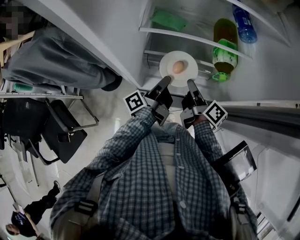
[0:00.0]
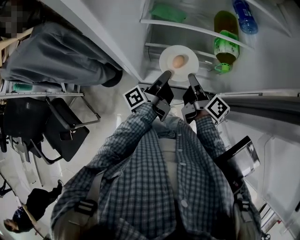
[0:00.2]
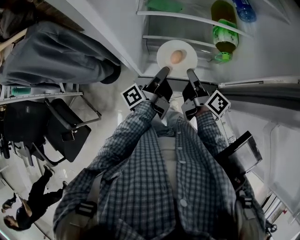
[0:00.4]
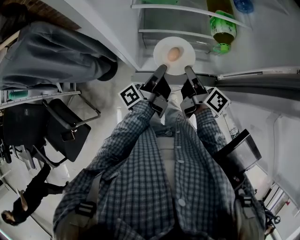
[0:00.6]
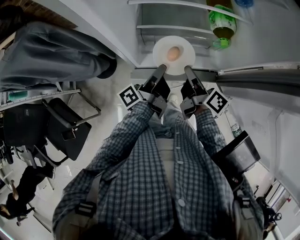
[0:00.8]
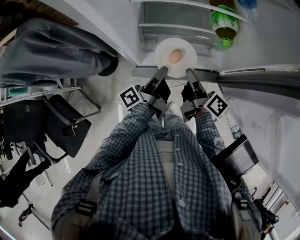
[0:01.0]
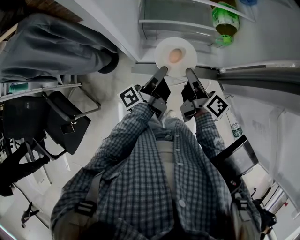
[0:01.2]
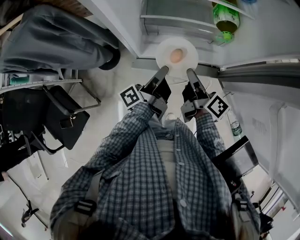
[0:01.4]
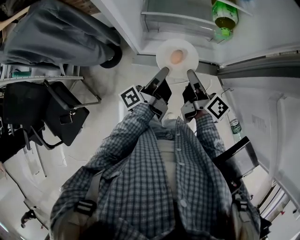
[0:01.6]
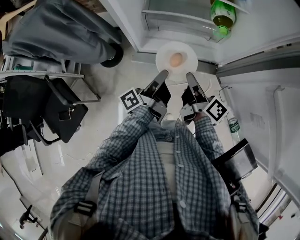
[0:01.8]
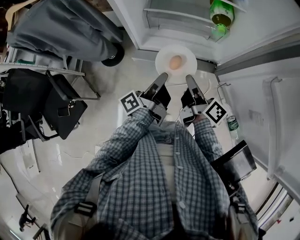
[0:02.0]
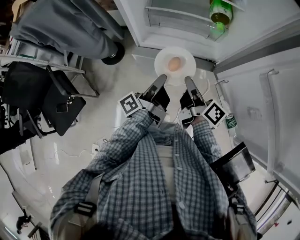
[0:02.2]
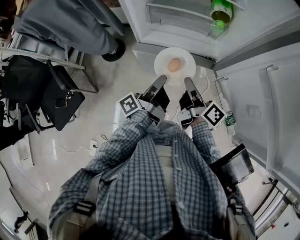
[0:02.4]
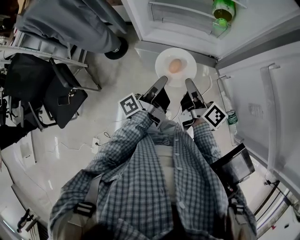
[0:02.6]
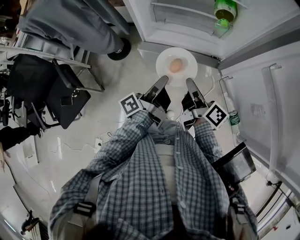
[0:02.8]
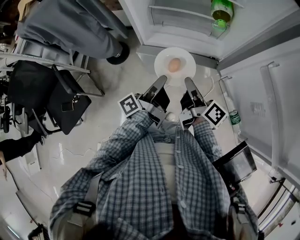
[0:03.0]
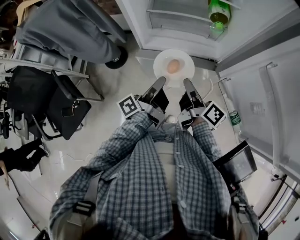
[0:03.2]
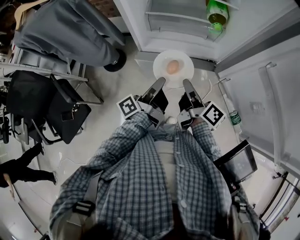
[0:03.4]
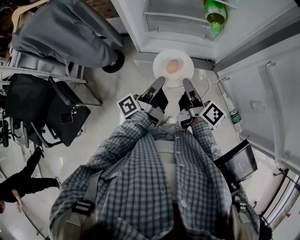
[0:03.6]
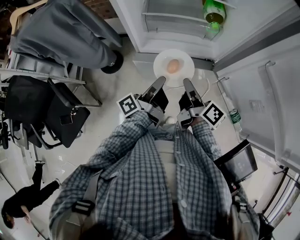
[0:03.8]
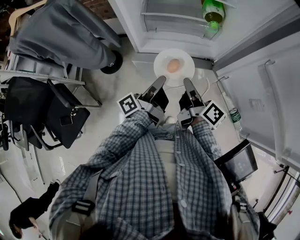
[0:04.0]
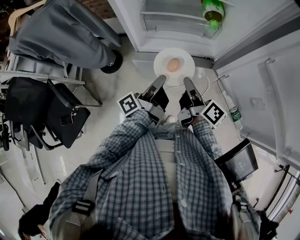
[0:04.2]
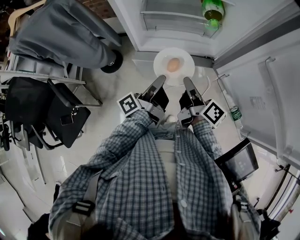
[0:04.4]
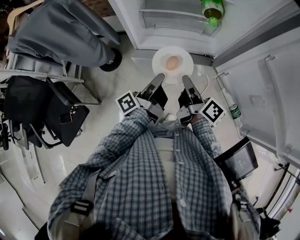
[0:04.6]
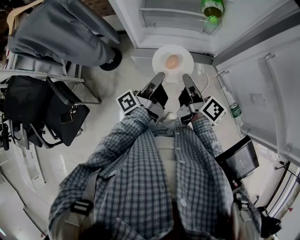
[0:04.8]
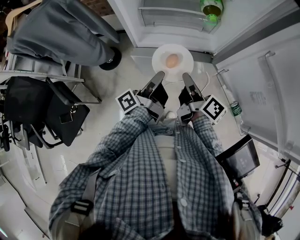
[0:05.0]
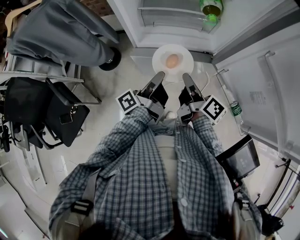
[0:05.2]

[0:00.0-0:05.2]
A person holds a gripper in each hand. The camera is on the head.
0:00.0 to 0:01.8: Both grippers move backward, approximately 15 cm.
0:01.8 to 0:03.4: Both grippers move backward, roughly 5 cm.
0:03.4 to 0:05.2: Both grippers stay put.

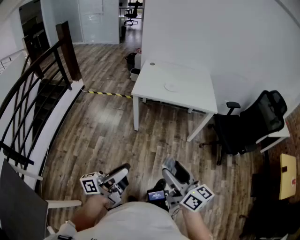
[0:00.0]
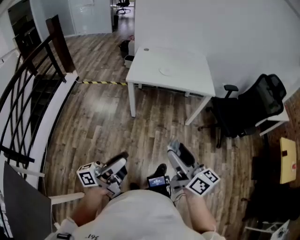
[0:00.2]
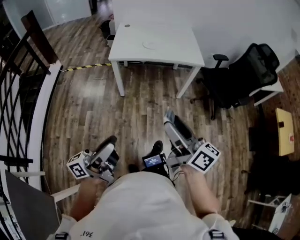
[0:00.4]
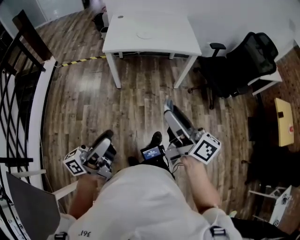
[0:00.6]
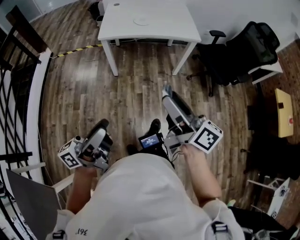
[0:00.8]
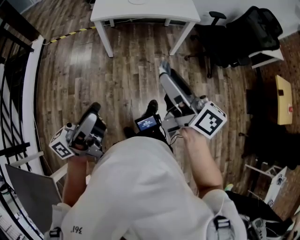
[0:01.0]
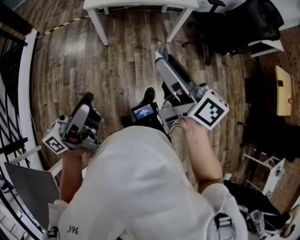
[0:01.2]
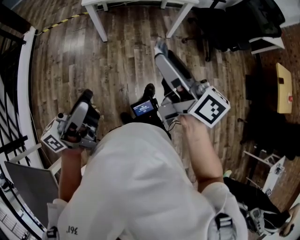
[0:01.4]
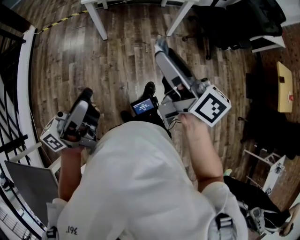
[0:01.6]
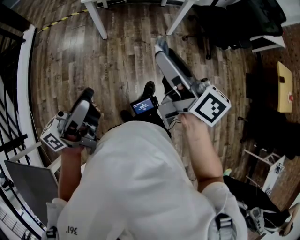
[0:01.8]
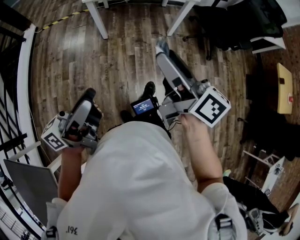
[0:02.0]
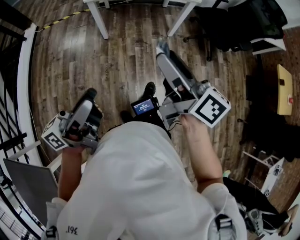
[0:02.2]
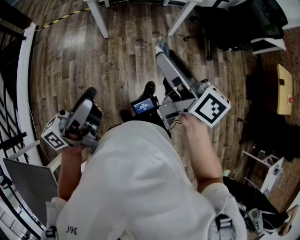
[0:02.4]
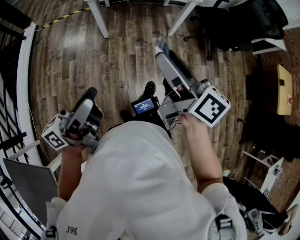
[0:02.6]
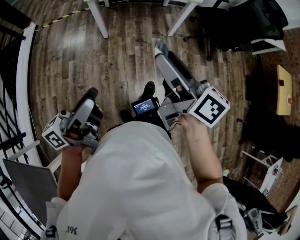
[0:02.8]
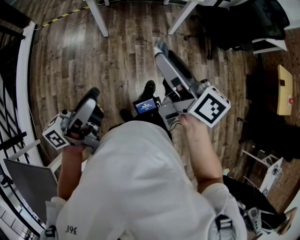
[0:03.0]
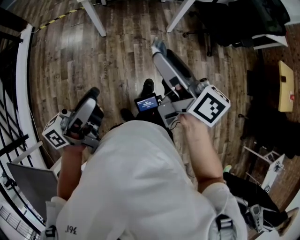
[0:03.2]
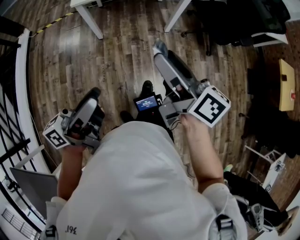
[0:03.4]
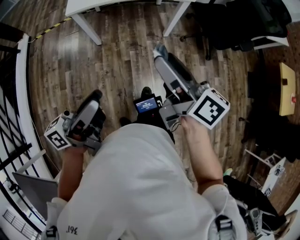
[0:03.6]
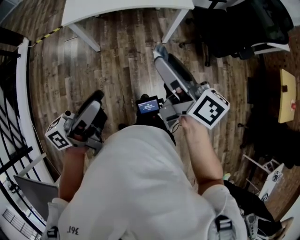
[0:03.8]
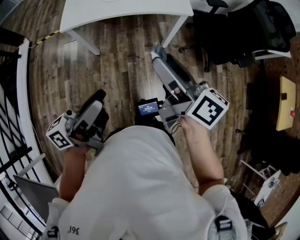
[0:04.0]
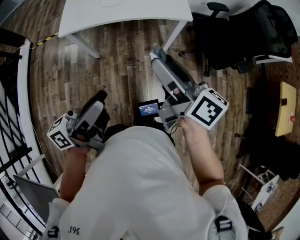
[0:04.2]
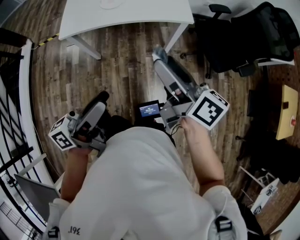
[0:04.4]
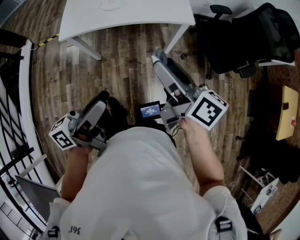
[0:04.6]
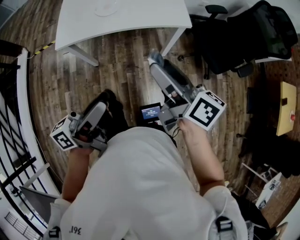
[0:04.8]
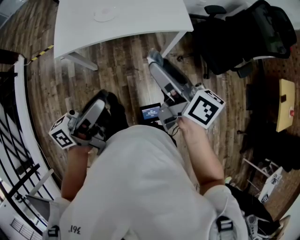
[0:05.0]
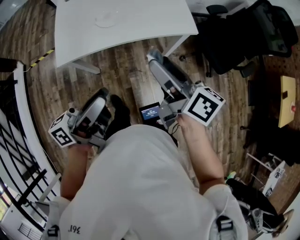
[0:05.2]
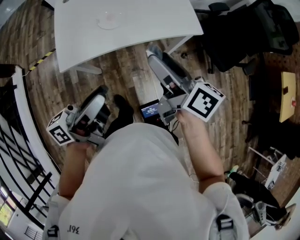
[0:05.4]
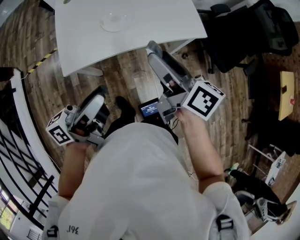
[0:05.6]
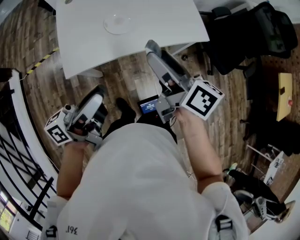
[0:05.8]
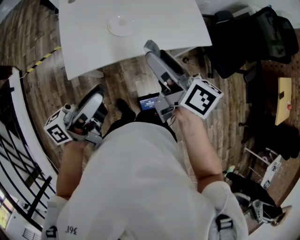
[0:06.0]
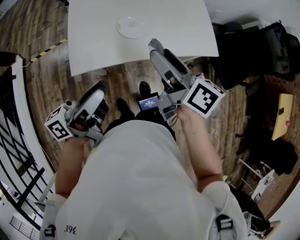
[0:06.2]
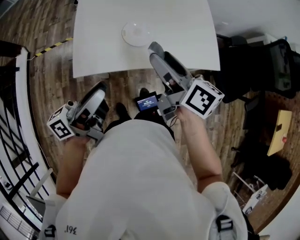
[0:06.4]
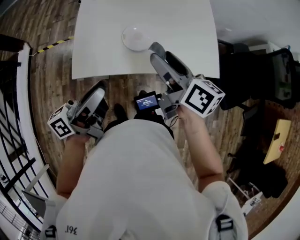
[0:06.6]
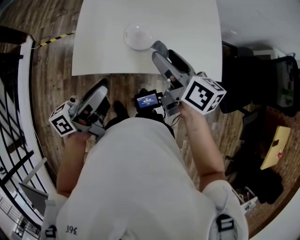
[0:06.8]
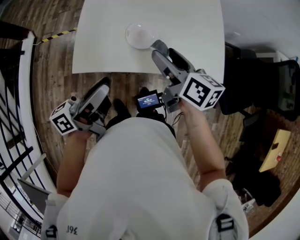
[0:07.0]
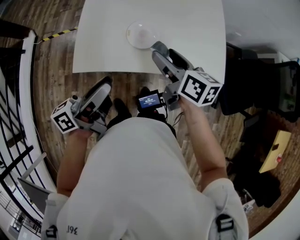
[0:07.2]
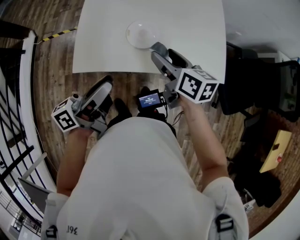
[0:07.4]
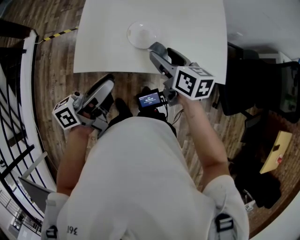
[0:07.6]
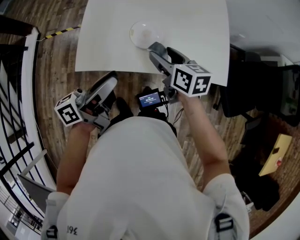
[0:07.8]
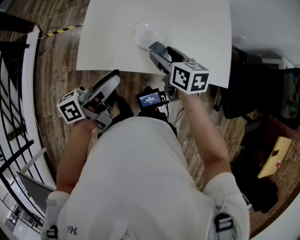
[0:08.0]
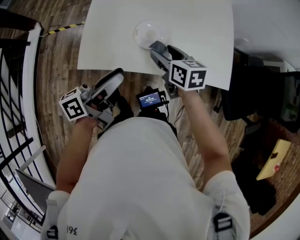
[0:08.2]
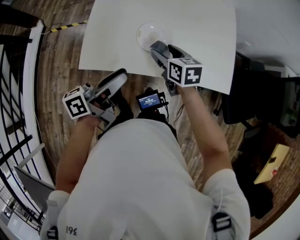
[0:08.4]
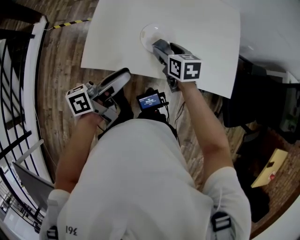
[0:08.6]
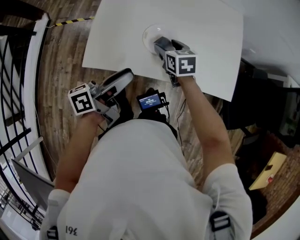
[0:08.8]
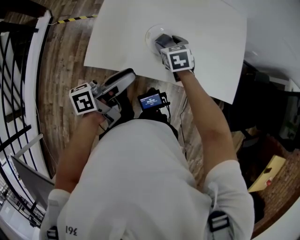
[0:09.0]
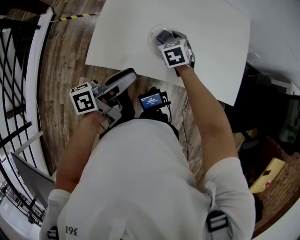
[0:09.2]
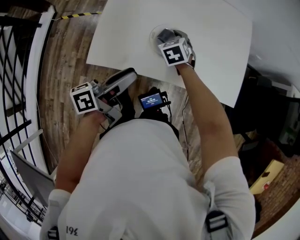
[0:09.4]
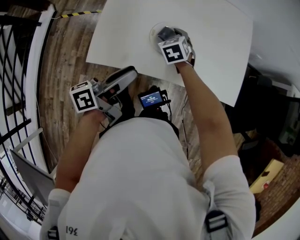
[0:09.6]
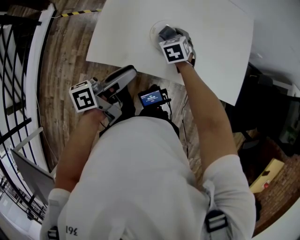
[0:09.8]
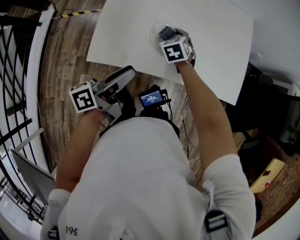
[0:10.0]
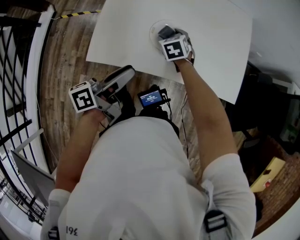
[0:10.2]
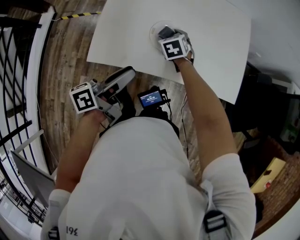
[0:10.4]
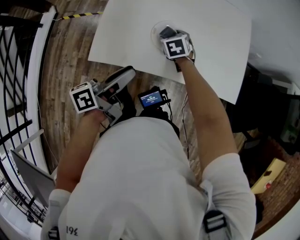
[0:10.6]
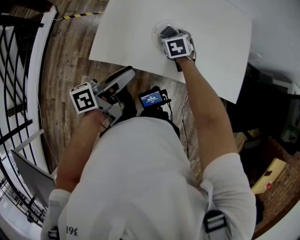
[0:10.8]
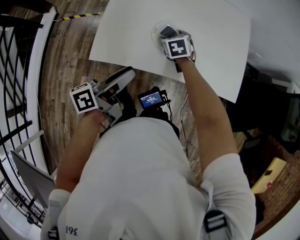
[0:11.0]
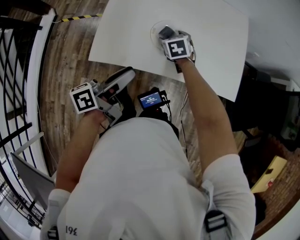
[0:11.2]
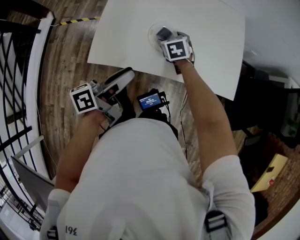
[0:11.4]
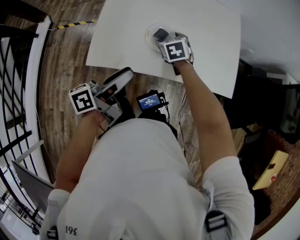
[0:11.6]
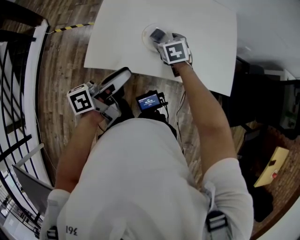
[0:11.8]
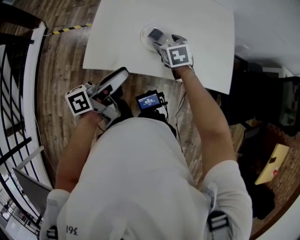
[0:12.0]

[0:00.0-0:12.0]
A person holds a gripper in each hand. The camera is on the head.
0:00.0 to 0:01.6: The right gripper is displaced forward by roughly 10 cm.
0:01.6 to 0:03.0: There are only small adjustments of the grippers.
0:03.0 to 0:04.4: Both grippers travel together forward and to the right, approximately 35 cm.
0:04.4 to 0:06.0: The grippers both shift to the left and forward by about 35 cm.
0:06.0 to 0:07.6: The left gripper moves forward and downward, some 10 cm; the right gripper goes some 20 cm forward and downward, and rotates roughly 30 degrees.
0:07.6 to 0:09.0: The left gripper goes approximately 5 cm downward. The right gripper heads downward, forward and to the left, covering roughly 20 cm, and swivels some 40 degrees.
0:09.0 to 0:10.4: The grippers make only small movements.
0:10.4 to 0:12.0: The right gripper travels upward by approximately 5 cm.

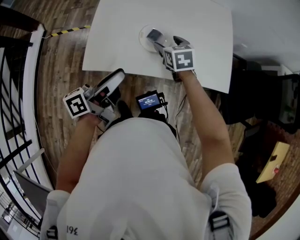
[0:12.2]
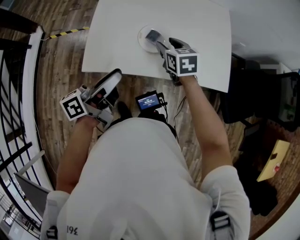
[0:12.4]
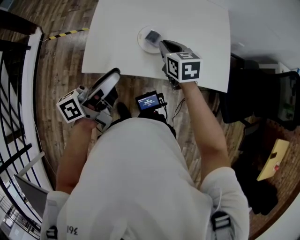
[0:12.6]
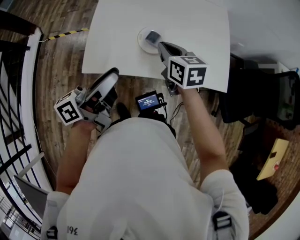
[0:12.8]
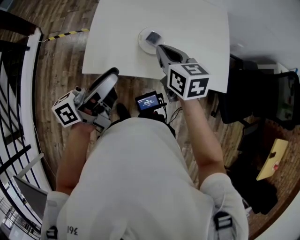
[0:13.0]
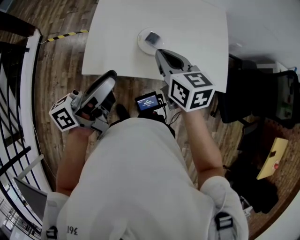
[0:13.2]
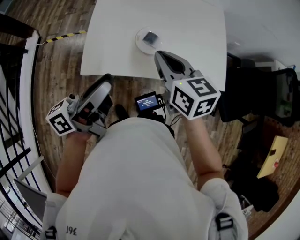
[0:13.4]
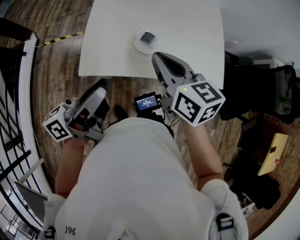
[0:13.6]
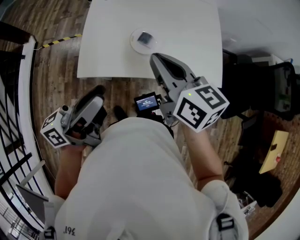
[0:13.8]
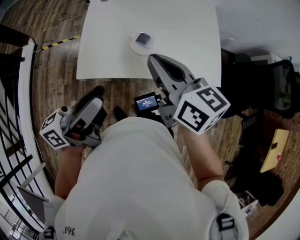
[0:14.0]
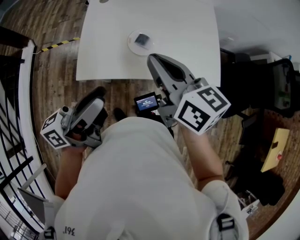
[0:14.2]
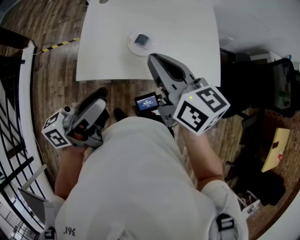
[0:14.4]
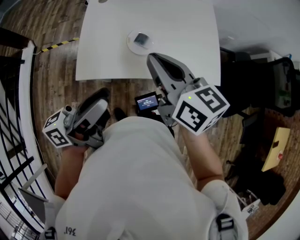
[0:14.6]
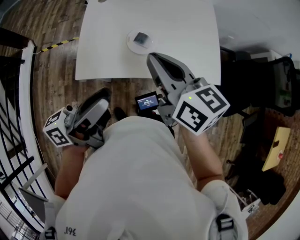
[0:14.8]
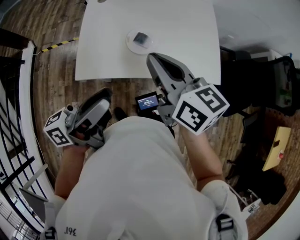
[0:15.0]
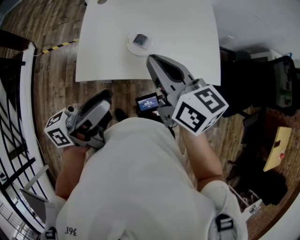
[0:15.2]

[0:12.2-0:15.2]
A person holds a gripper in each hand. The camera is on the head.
0:12.2 to 0:13.8: The left gripper moves upward and backward, about 15 cm, while the right gripper heads upward and backward, covering some 25 cm, swivels about 30 degrees, and closes its fingers.
0:13.8 to 0:15.2: There are only small adjustments of the grippers.

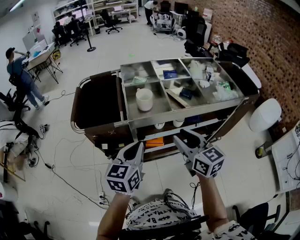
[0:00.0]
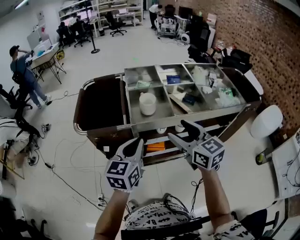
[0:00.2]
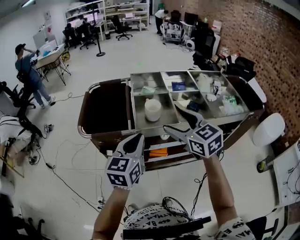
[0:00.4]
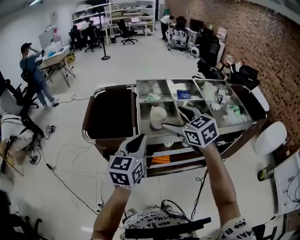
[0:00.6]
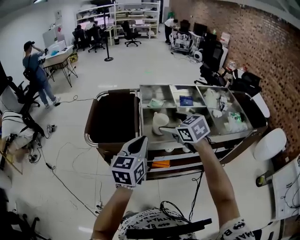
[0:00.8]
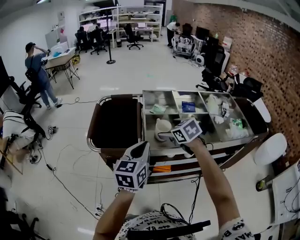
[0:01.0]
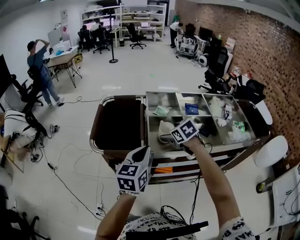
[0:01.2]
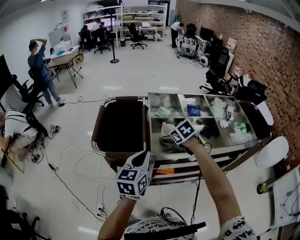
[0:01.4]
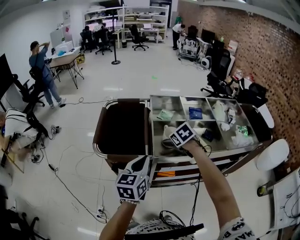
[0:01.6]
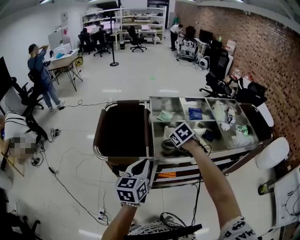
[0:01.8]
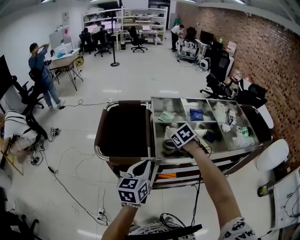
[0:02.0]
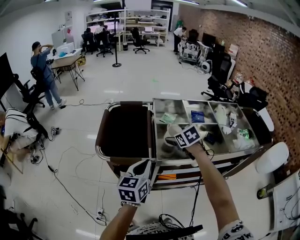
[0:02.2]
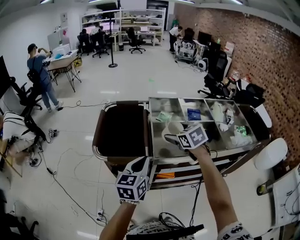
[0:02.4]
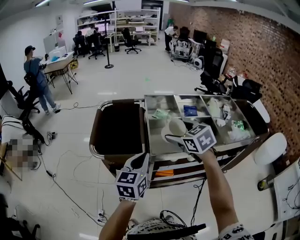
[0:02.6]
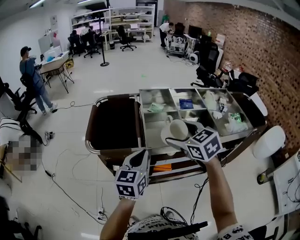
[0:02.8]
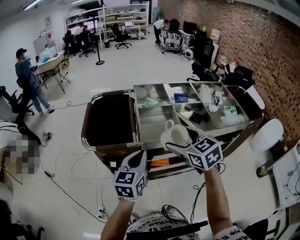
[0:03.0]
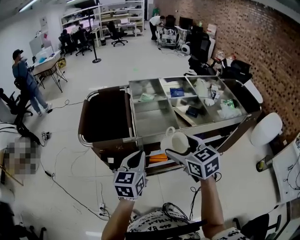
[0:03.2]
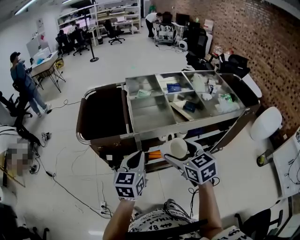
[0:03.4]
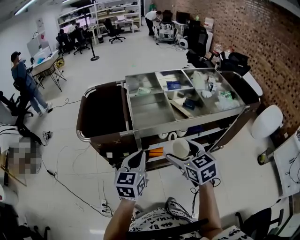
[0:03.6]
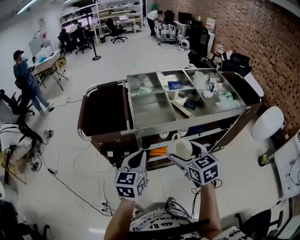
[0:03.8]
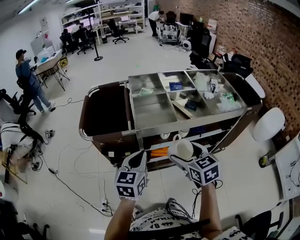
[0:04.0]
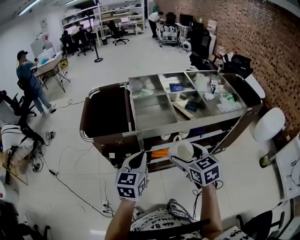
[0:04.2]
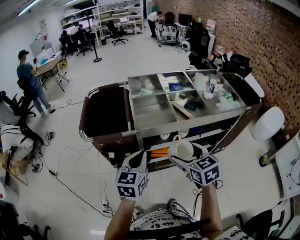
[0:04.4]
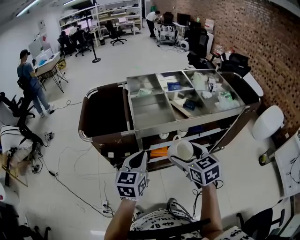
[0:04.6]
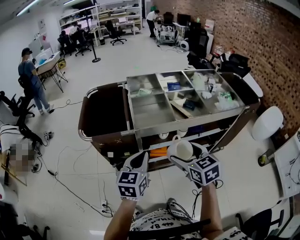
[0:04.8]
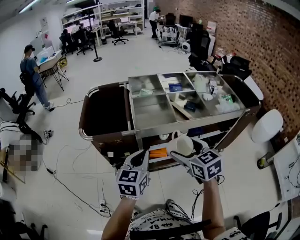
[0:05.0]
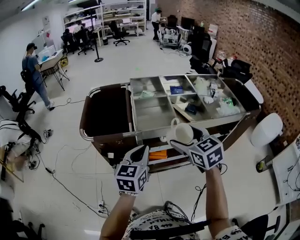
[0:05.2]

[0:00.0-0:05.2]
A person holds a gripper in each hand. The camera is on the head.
0:00.0 to 0:01.8: The right gripper goes some 25 cm forward, tilts its fingers some 50 degrees downward, and opens its fingers. The left gripper shifts about 10 cm forward and to the left.
0:01.8 to 0:03.4: The right gripper is displaced backward by approximately 25 cm, and tilts its fingers roughly 30 degrees upward. Meanwhile the left gripper goes some 10 cm backward and to the right.
0:03.4 to 0:05.2: The right gripper shifts some 5 cm upward.
